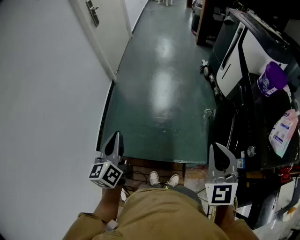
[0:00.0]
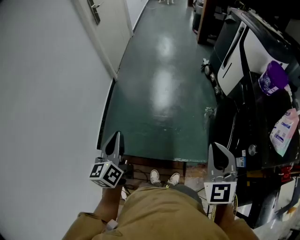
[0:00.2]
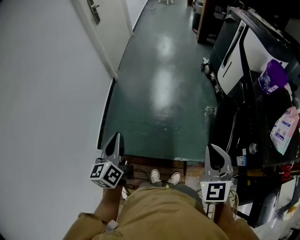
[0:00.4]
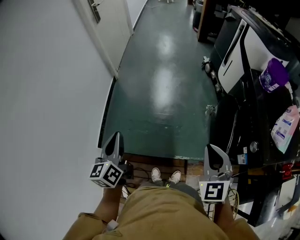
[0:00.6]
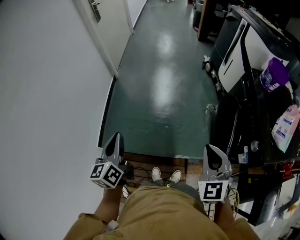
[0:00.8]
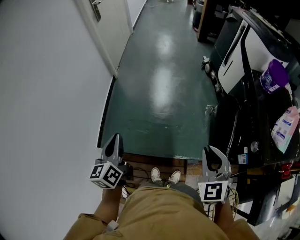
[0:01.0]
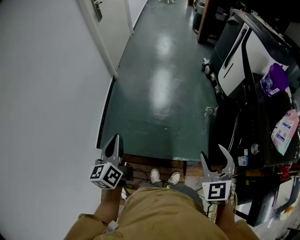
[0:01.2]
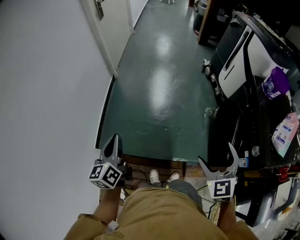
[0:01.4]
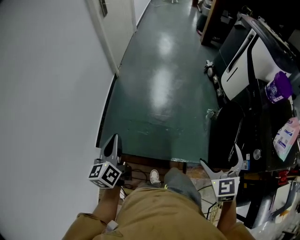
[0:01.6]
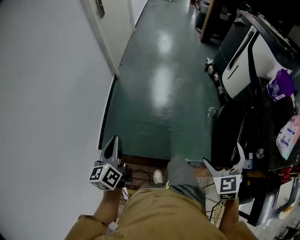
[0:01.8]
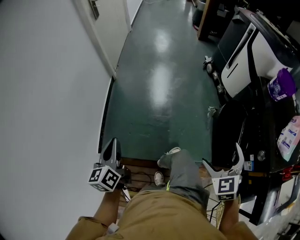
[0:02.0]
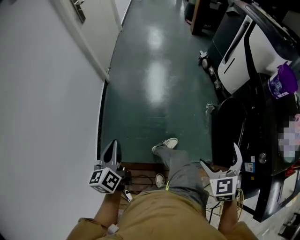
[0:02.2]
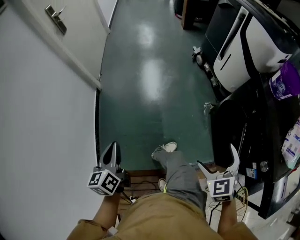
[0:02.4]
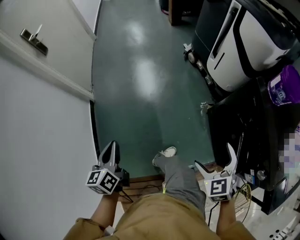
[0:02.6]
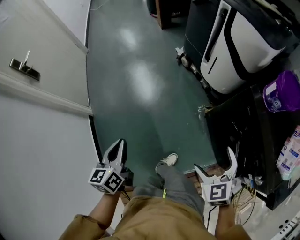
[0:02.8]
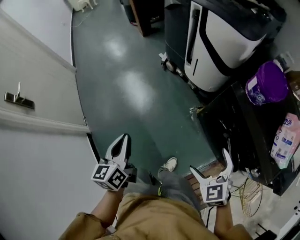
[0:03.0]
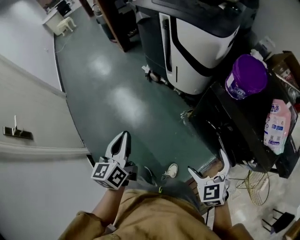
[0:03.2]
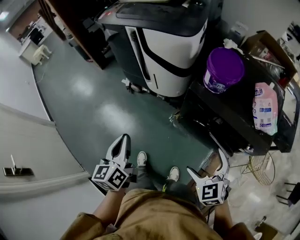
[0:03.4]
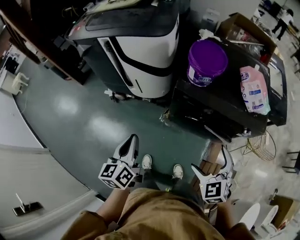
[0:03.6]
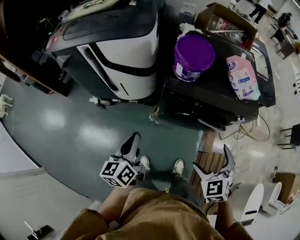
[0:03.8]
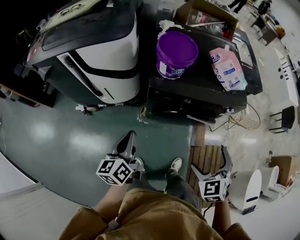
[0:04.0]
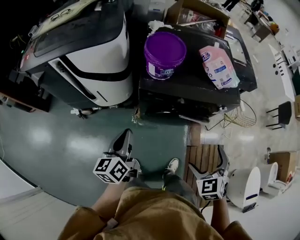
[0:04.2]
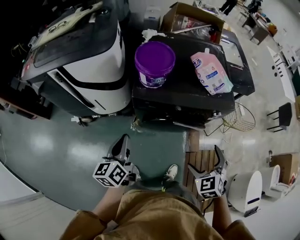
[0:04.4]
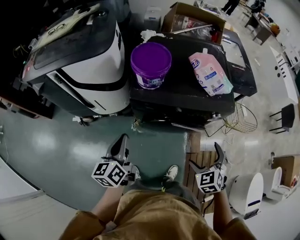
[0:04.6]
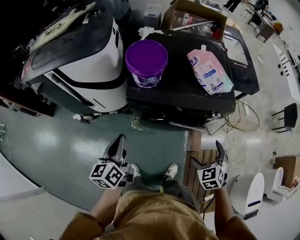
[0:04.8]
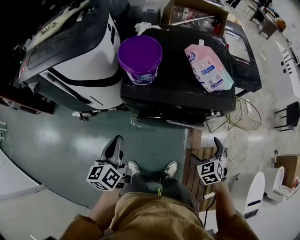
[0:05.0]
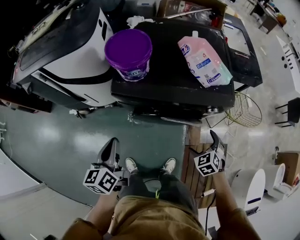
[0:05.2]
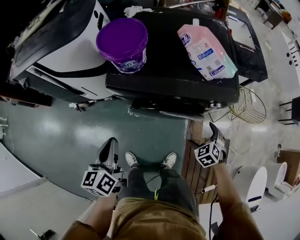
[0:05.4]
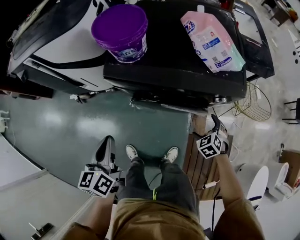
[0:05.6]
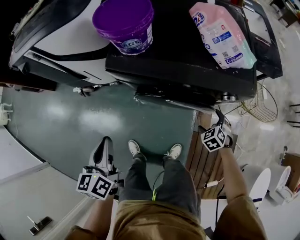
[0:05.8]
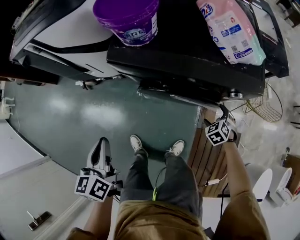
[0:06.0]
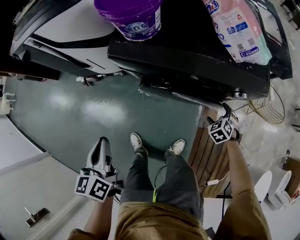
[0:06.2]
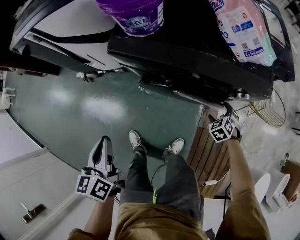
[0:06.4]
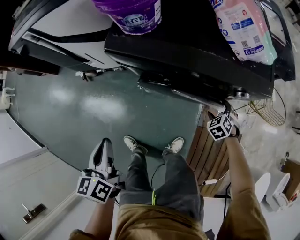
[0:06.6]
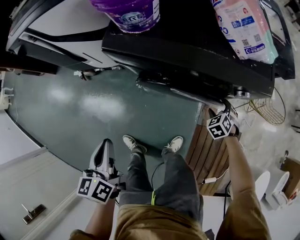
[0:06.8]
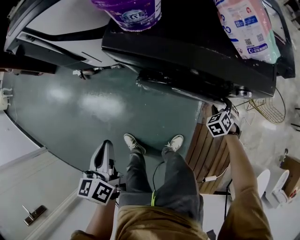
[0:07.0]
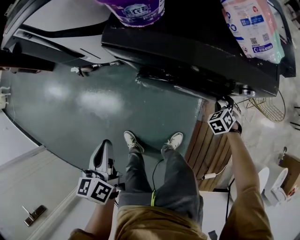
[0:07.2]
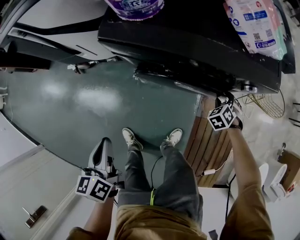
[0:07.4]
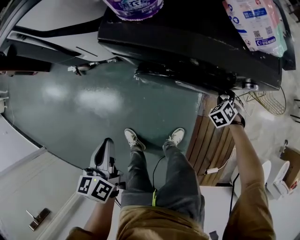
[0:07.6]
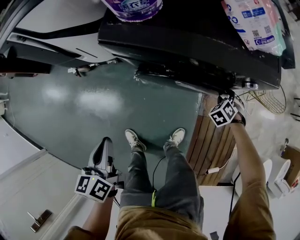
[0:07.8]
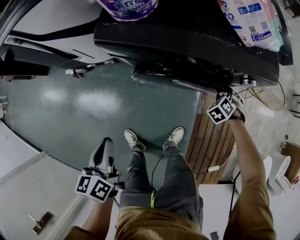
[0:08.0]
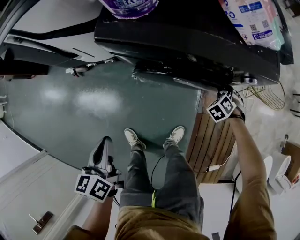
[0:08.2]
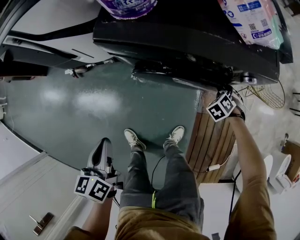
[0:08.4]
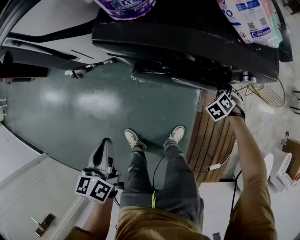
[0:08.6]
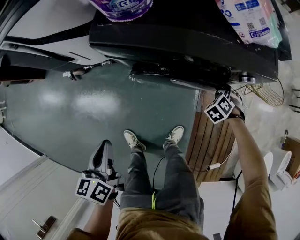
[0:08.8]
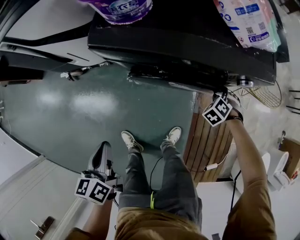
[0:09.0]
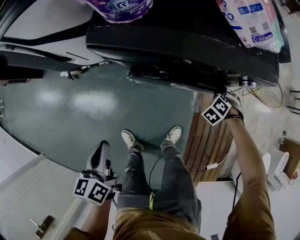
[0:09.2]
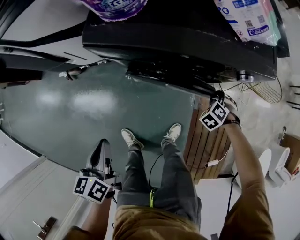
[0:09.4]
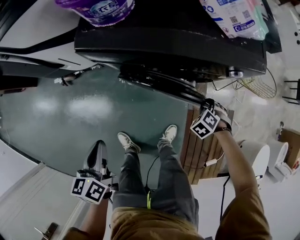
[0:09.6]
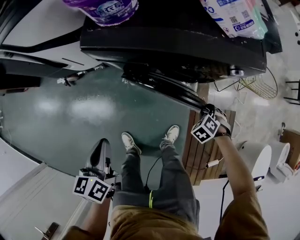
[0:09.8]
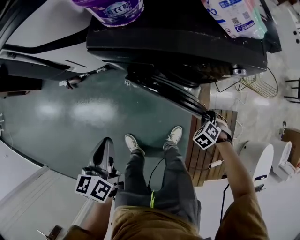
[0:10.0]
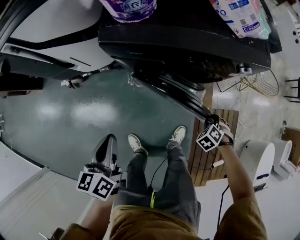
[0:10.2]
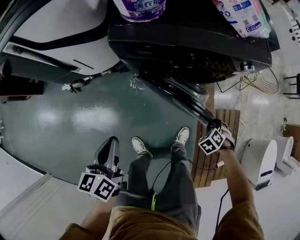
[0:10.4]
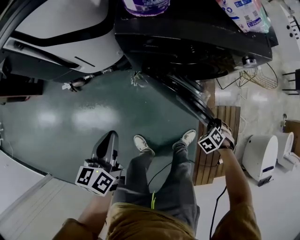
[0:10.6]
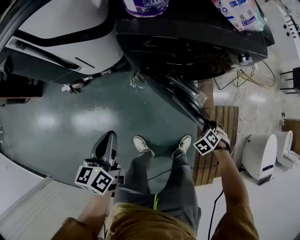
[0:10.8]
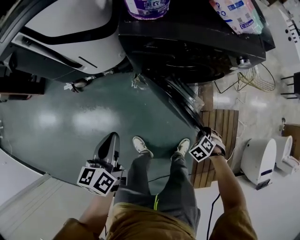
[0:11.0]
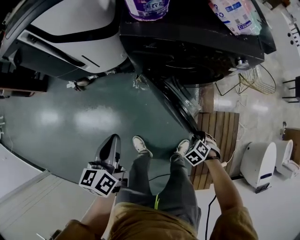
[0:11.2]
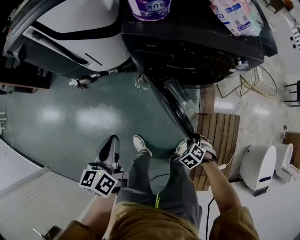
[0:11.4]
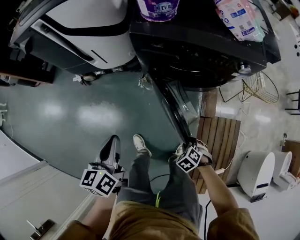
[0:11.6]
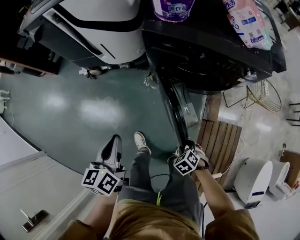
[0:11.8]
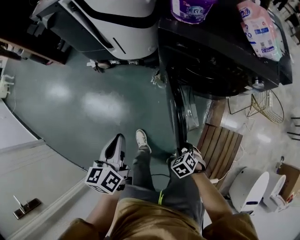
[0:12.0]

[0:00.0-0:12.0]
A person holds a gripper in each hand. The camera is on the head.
0:00.0 to 0:01.6: The left gripper shifts some 10 cm to the left and downward; the right gripper moves downward, some 10 cm, and opens.
0:01.6 to 0:03.0: The left gripper moves roughly 60 cm, and turns by about 40 degrees. The right gripper shifts by roughly 30 cm, and changes its angle by approximately 30 degrees.
0:03.0 to 0:04.4: The right gripper changes place by some 15 cm, and turns by about 60 degrees; the left gripper ends up some 35 cm from where it was, and turns by some 60 degrees.
0:04.4 to 0:06.0: The right gripper moves downward, to the right and forward, roughly 35 cm, and turns by approximately 20 degrees, while the left gripper shifts roughly 5 cm backward, and swivels some 20 degrees.
0:06.0 to 0:07.6: The left gripper travels downward by about 5 cm. The right gripper ends up roughly 5 cm from where it was, and closes.
0:07.6 to 0:09.0: The grippers make only small movements.
0:09.0 to 0:10.4: The right gripper changes place by roughly 20 cm.
0:10.4 to 0:12.0: The right gripper ends up roughly 25 cm from where it was, and turns by approximately 30 degrees. The left gripper ends up approximately 15 cm from where it was.

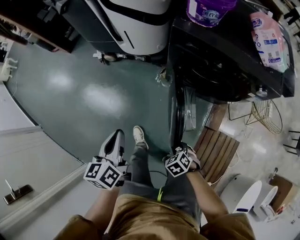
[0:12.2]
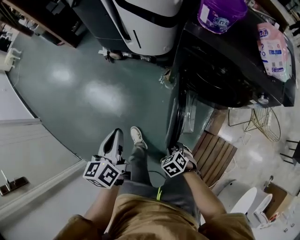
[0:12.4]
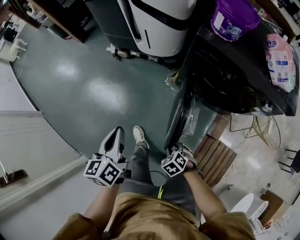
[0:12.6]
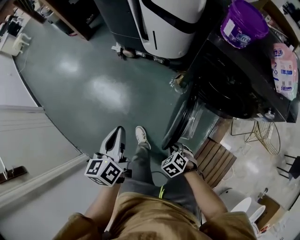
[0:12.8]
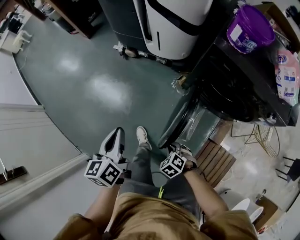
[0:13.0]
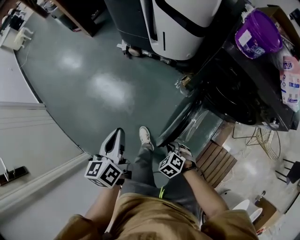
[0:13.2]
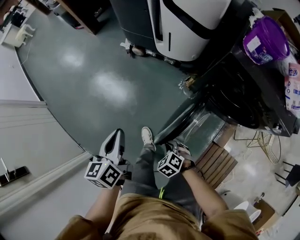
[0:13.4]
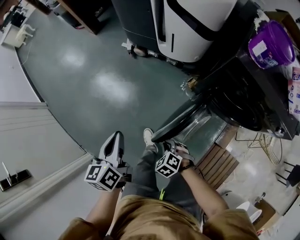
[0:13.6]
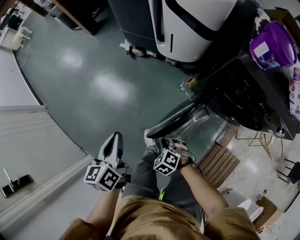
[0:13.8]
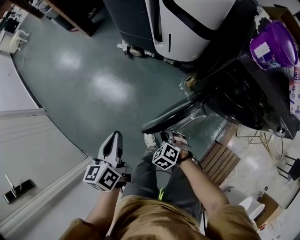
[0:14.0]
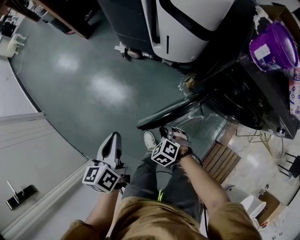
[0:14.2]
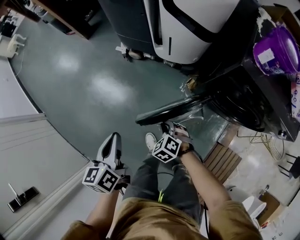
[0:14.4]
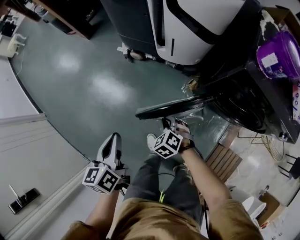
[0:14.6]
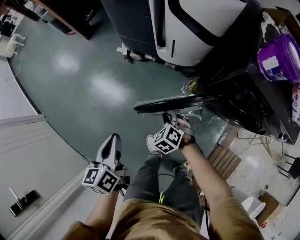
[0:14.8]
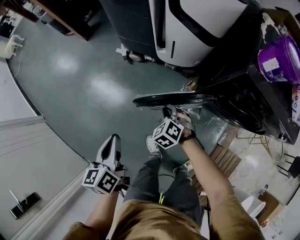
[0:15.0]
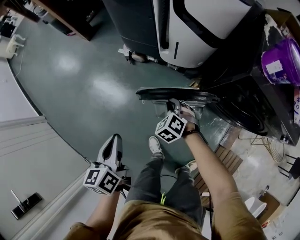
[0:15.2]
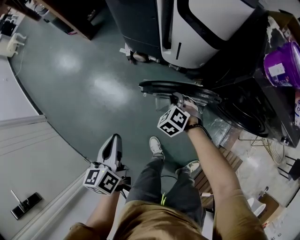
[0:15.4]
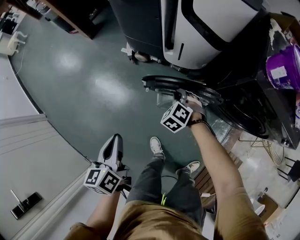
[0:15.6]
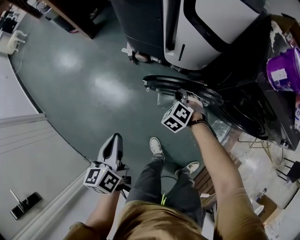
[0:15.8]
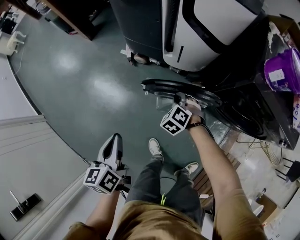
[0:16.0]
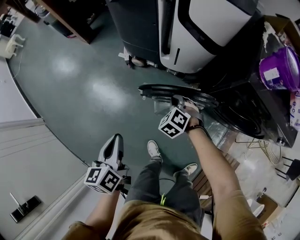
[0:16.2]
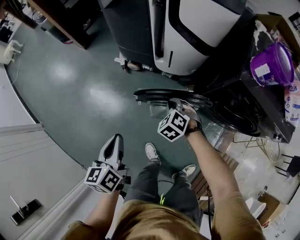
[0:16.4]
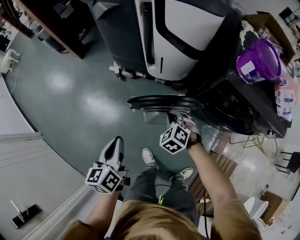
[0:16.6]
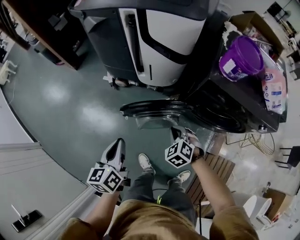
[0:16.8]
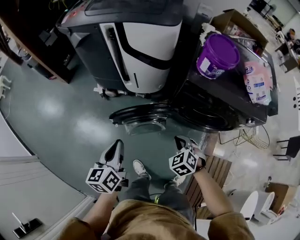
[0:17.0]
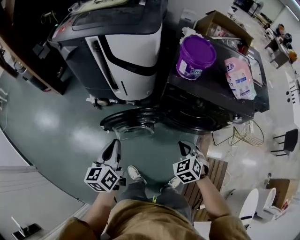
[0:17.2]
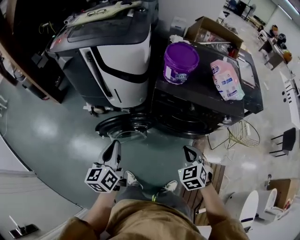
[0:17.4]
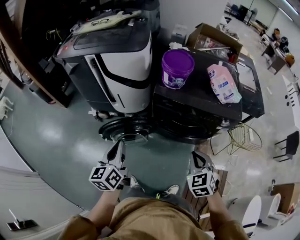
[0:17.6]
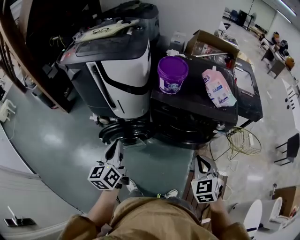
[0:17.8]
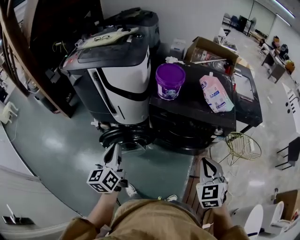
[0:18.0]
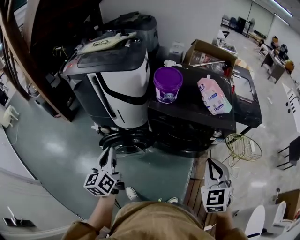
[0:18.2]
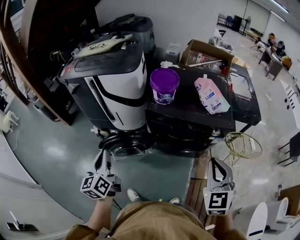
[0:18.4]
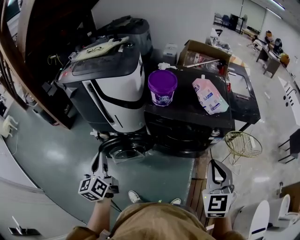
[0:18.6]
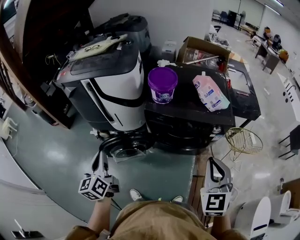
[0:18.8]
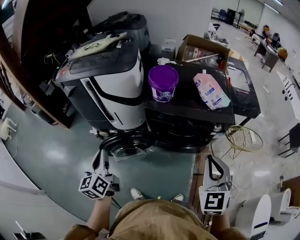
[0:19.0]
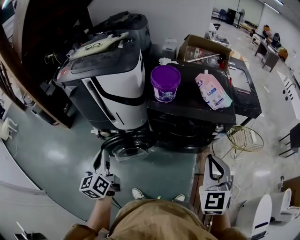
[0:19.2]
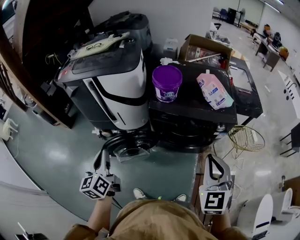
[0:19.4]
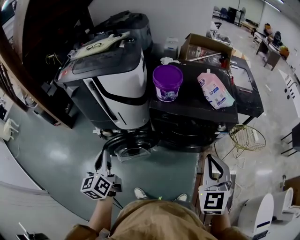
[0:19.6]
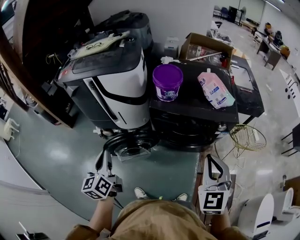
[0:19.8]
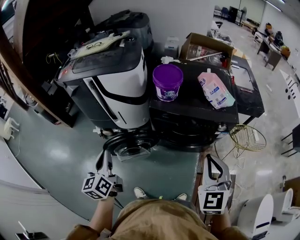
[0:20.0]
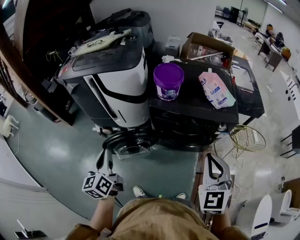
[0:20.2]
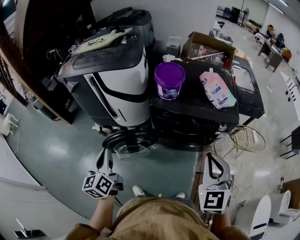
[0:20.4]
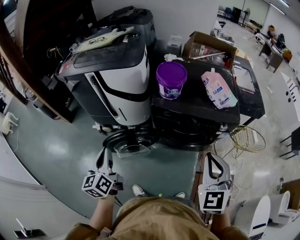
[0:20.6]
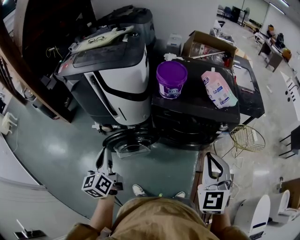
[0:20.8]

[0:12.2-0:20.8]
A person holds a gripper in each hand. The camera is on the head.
0:12.2 to 0:13.6: The right gripper moves about 20 cm, and rotates roughly 30 degrees; the left gripper shifts by about 20 cm.
0:13.6 to 0:15.0: The right gripper shifts some 25 cm forward; the left gripper goes about 10 cm forward.
0:15.0 to 0:16.6: The right gripper shifts about 10 cm upward and to the right, and travels forward and back again, some 10 cm each way.
0:16.6 to 0:18.0: The right gripper moves to the right, upward and backward, approximately 60 cm, and tips its fingers upward by roughly 30 degrees, while the left gripper travels to the right and upward by some 30 cm, and swivels some 20 degrees.
0:18.0 to 0:19.4: The left gripper is displaced to the left by some 5 cm; the right gripper shifts some 10 cm upward.
0:19.4 to 0:20.8: The grippers make only small movements.

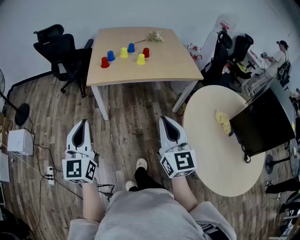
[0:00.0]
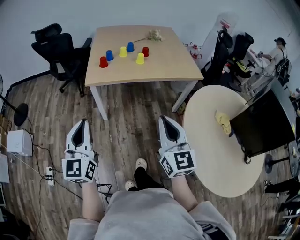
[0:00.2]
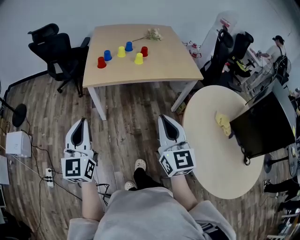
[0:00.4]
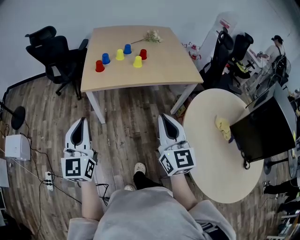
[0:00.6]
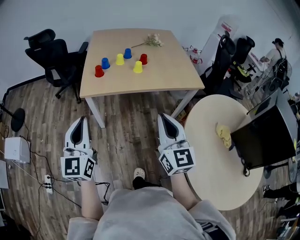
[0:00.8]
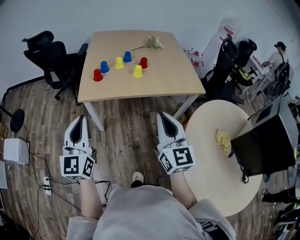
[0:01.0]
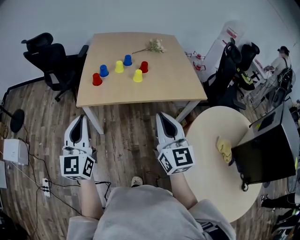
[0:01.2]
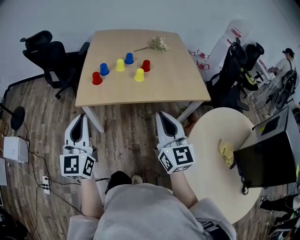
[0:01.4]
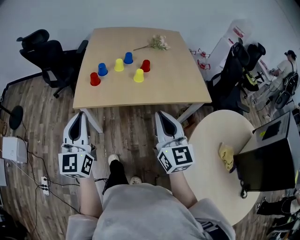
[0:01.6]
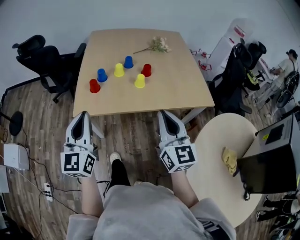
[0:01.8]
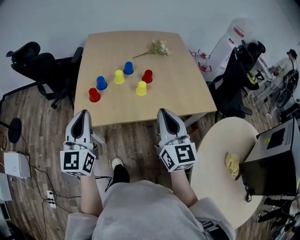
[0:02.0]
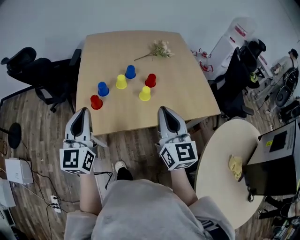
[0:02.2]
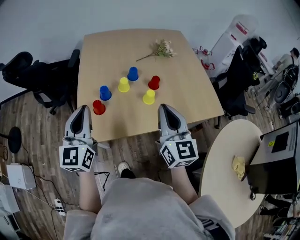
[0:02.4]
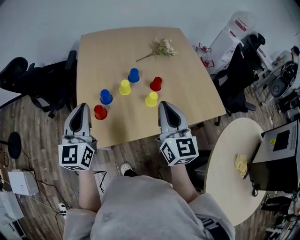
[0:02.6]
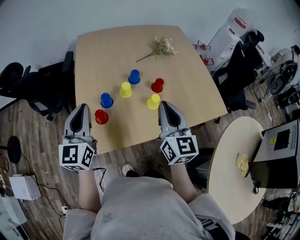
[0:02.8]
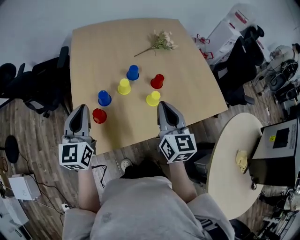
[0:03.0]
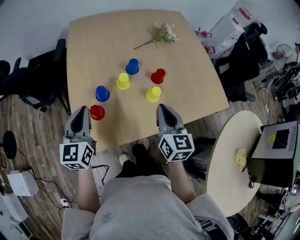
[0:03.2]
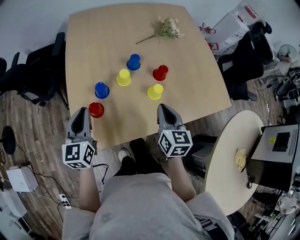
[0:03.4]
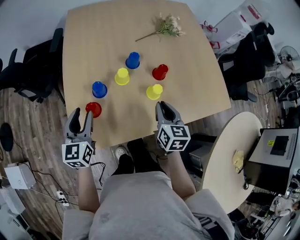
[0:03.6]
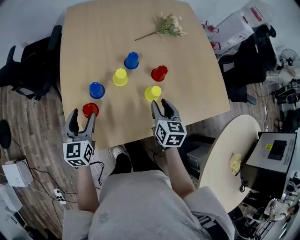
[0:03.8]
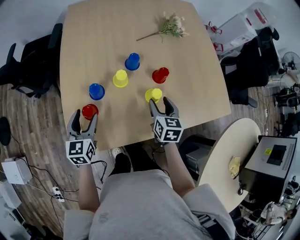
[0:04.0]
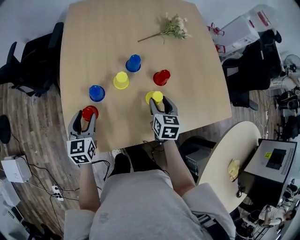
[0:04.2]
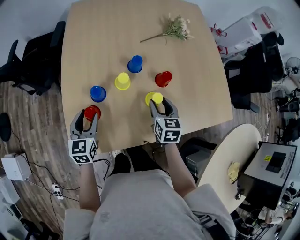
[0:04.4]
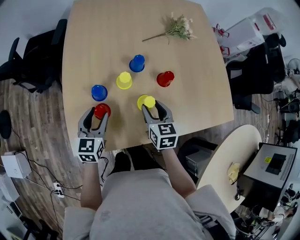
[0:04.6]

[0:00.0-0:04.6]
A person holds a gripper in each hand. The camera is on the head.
0:00.0 to 0:01.6: The grippers both shift forward by approximately 30 cm.
0:01.6 to 0:03.0: The two grippers go roughly 35 cm forward.
0:03.0 to 0:04.6: The right gripper heads downward and forward, covering approximately 20 cm, swivels roughly 30 degrees, and opens its fingers. Meanwhile the left gripper heads downward, covering roughly 20 cm, turns by some 20 degrees, and opens its fingers.
